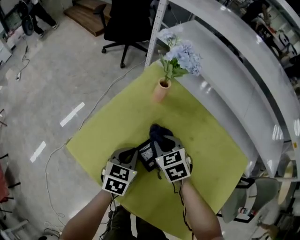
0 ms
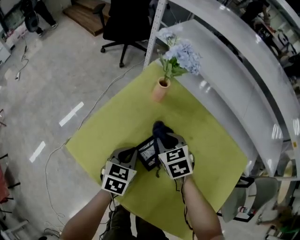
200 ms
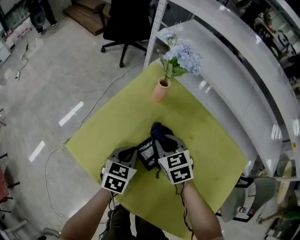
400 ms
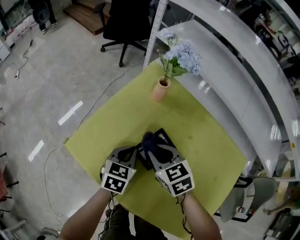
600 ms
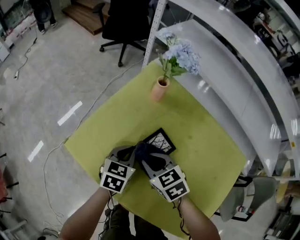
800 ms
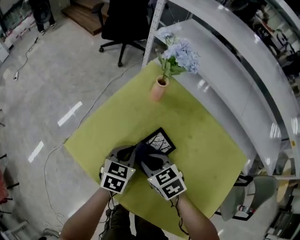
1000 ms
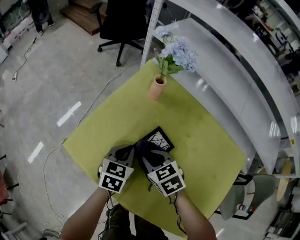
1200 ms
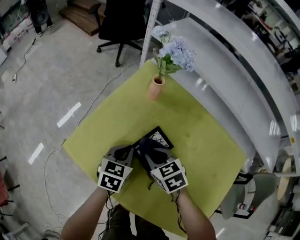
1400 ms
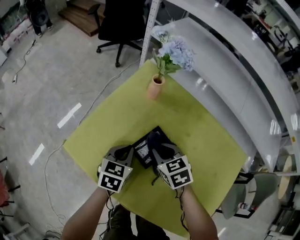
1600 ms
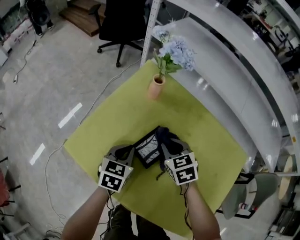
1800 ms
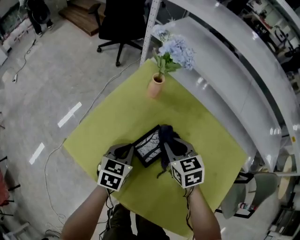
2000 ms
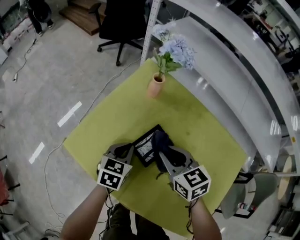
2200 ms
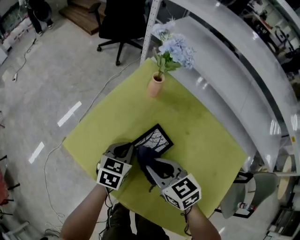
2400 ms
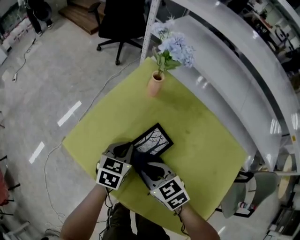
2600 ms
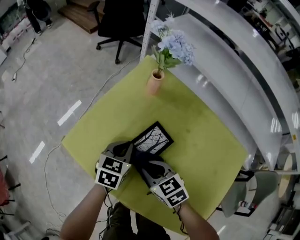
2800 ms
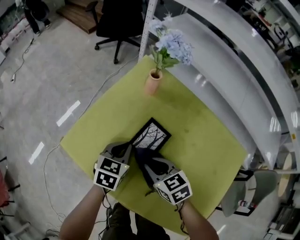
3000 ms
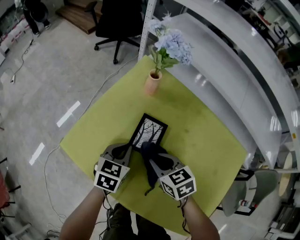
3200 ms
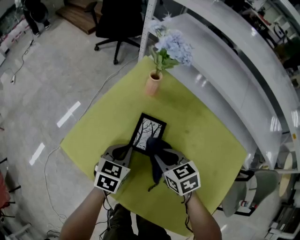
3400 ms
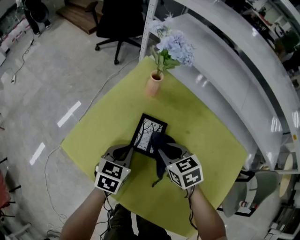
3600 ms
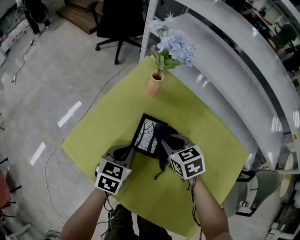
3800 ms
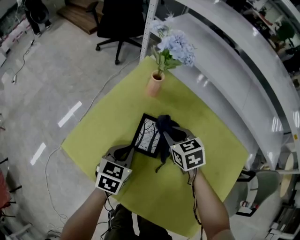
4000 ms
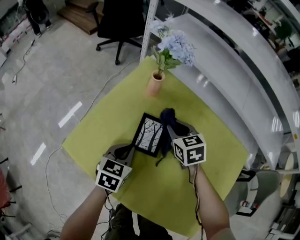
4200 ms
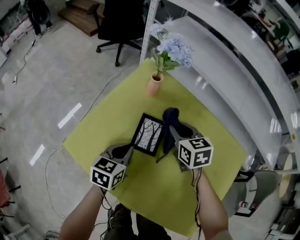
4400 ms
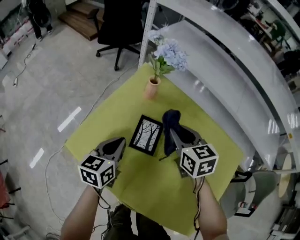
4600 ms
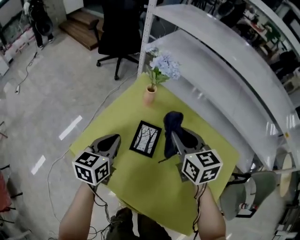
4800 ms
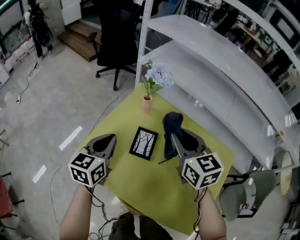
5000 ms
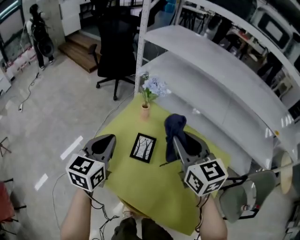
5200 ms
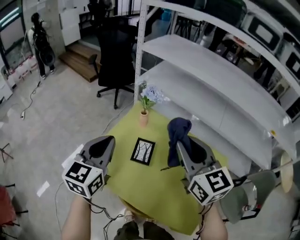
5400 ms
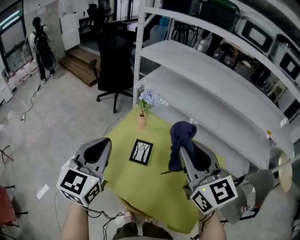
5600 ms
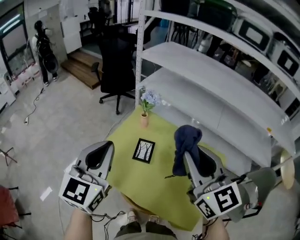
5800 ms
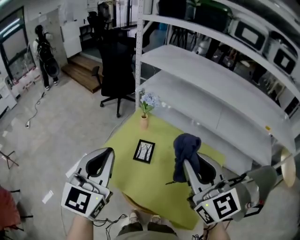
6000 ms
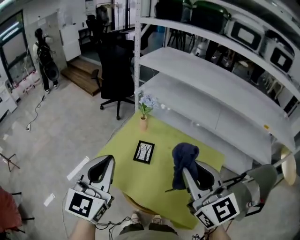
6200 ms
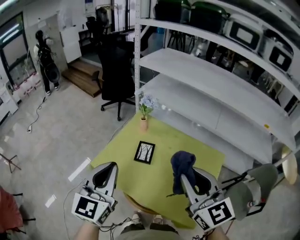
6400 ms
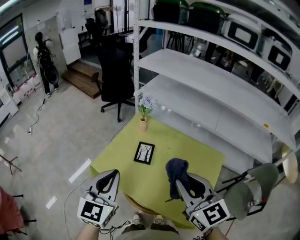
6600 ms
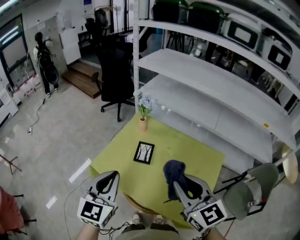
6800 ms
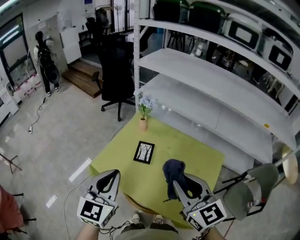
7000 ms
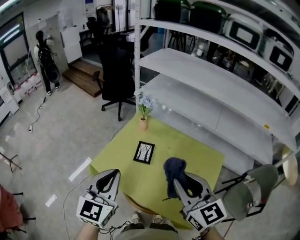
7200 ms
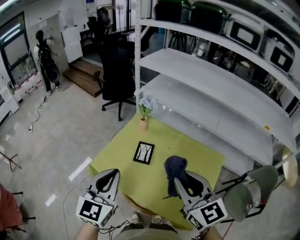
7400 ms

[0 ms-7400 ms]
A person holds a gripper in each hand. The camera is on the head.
0 ms to 1400 ms: The right gripper moves backward, approximately 5 cm.
1400 ms to 3000 ms: The right gripper heads backward, covering roughly 5 cm.
3000 ms to 4400 ms: The right gripper travels forward and to the right by approximately 15 cm, and swivels roughly 20 degrees.
4400 ms to 6000 ms: The right gripper shifts some 50 cm upward and backward, and points its fingers some 40 degrees further upward; the left gripper travels upward by approximately 40 cm, and angles its fingers upward, by some 30 degrees.
6000 ms to 7400 ms: The grippers both shift downward by about 5 cm.

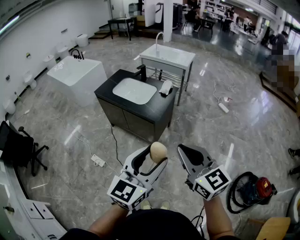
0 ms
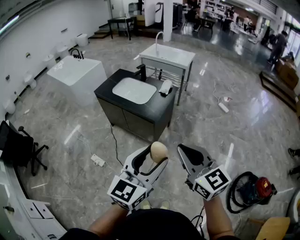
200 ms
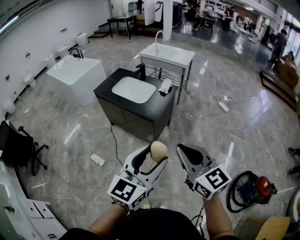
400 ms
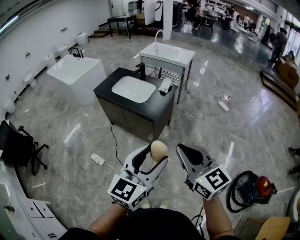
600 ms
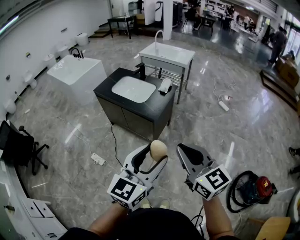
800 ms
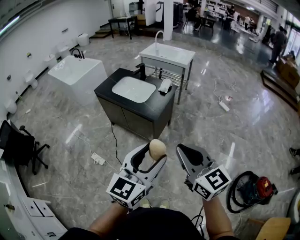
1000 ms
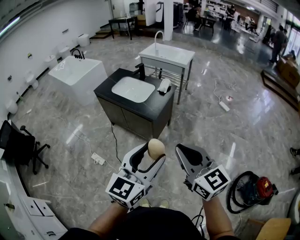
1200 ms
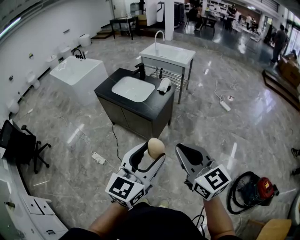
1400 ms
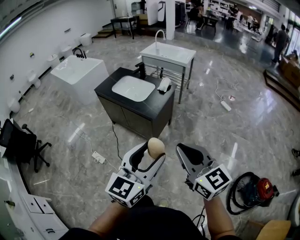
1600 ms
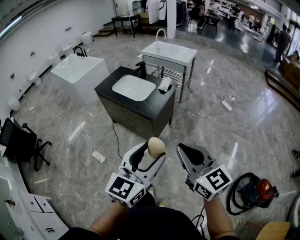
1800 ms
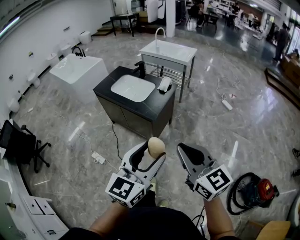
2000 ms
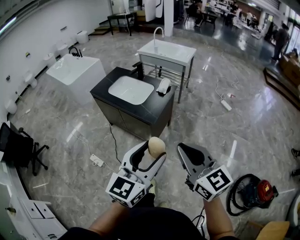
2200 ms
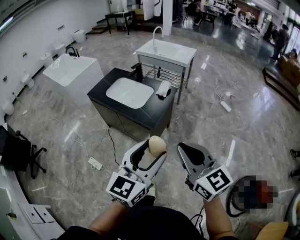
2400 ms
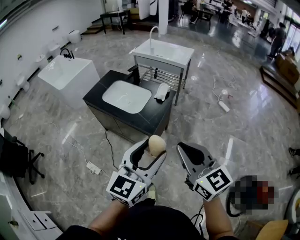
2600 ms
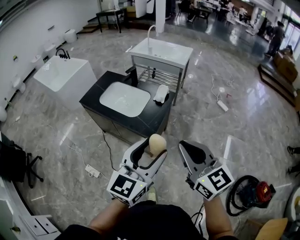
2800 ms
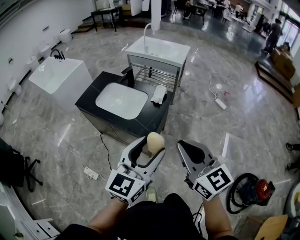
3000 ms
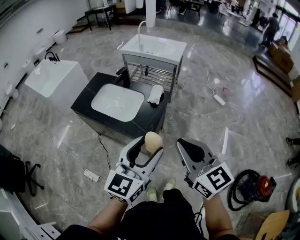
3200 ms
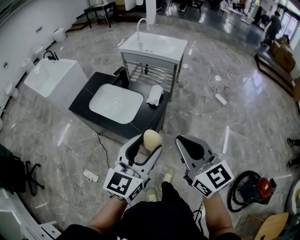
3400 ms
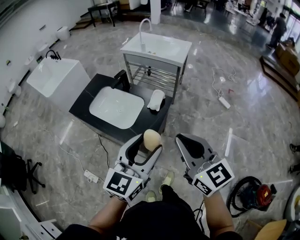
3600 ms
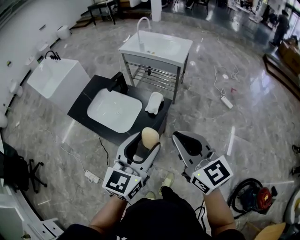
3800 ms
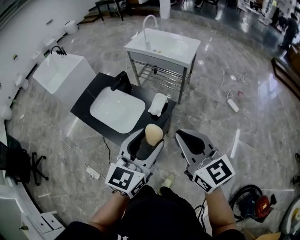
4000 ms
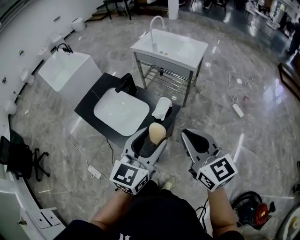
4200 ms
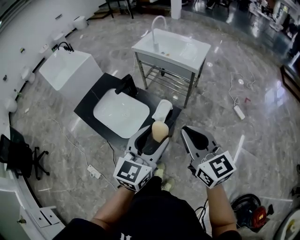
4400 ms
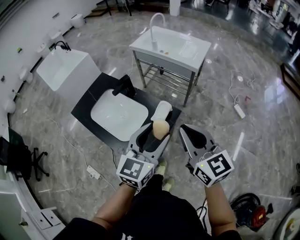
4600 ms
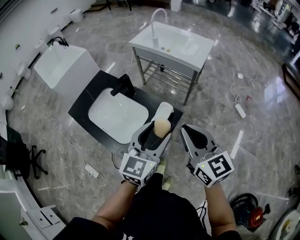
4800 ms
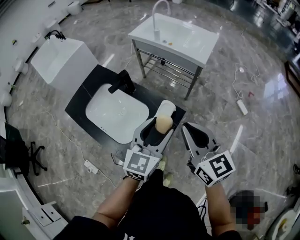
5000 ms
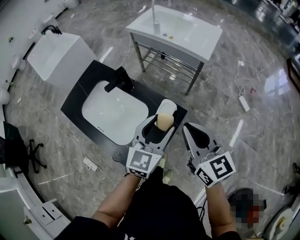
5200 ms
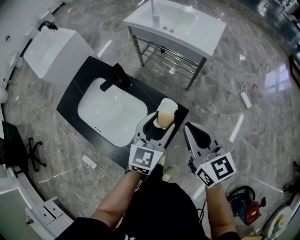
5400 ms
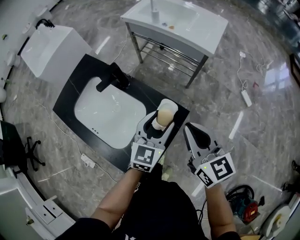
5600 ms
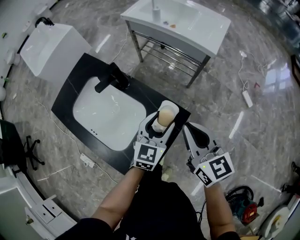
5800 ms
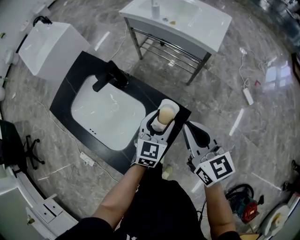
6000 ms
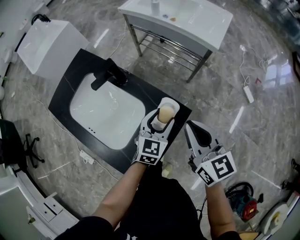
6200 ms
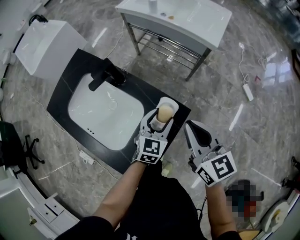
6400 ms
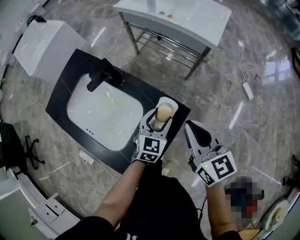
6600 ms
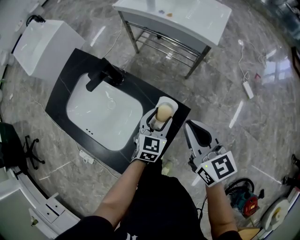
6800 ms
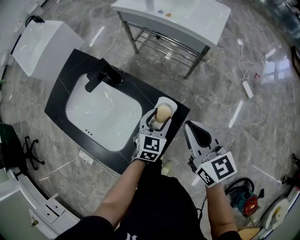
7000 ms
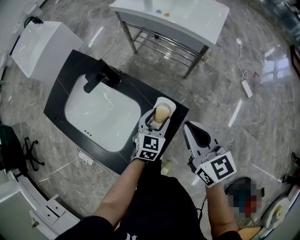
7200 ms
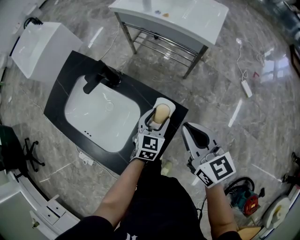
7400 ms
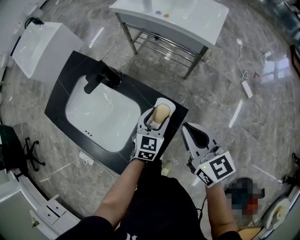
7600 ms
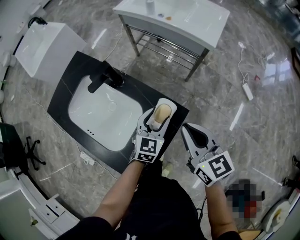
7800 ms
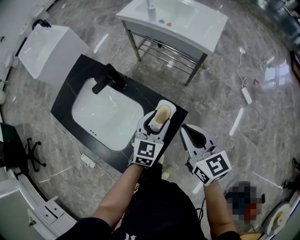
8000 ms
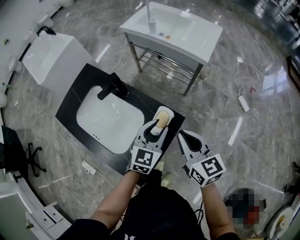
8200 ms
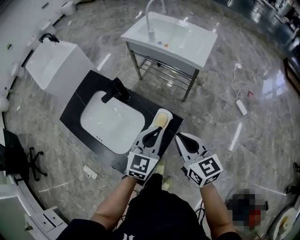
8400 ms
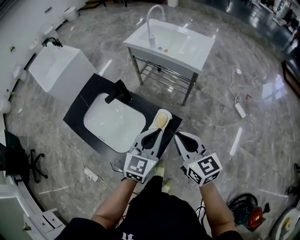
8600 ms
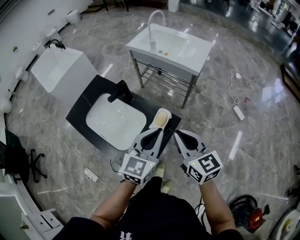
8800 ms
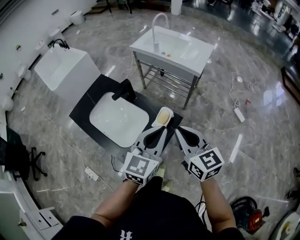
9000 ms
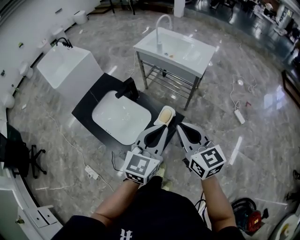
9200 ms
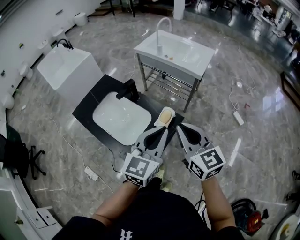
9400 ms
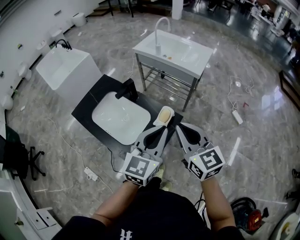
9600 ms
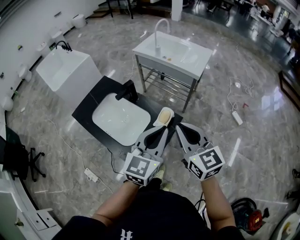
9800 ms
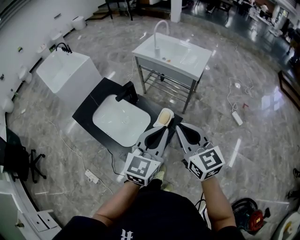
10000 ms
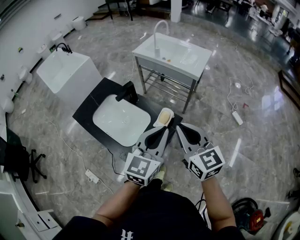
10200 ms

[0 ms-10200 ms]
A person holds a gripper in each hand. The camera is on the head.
0 ms to 1400 ms: The grippers move only a little.
1400 ms to 3000 ms: The two grippers go roughly 25 cm forward.
3000 ms to 4400 ms: Both grippers move forward, about 30 cm.
4400 ms to 5800 ms: The left gripper is displaced downward and forward by approximately 35 cm. Meanwhile the right gripper heads forward and downward, covering some 25 cm.
5800 ms to 7200 ms: The left gripper travels downward by roughly 10 cm.
7200 ms to 8800 ms: The right gripper heads upward and backward, covering about 15 cm; the left gripper heads upward and backward, covering approximately 30 cm, rotates about 20 degrees, and closes up.
8800 ms to 10200 ms: The left gripper travels upward and backward by about 10 cm. The right gripper is displaced upward by roughly 5 cm.

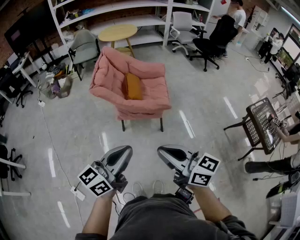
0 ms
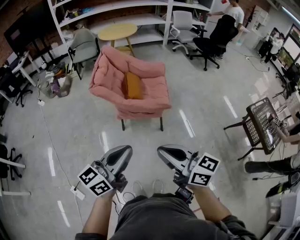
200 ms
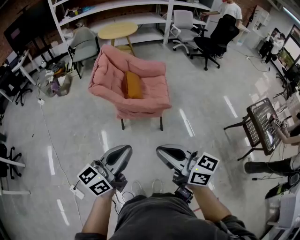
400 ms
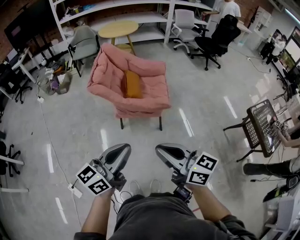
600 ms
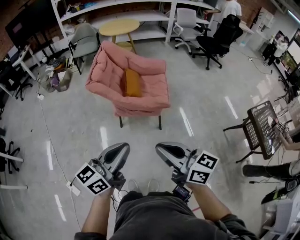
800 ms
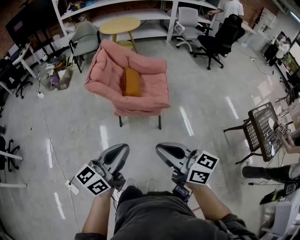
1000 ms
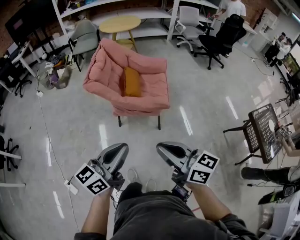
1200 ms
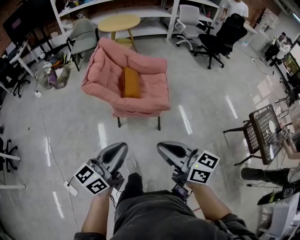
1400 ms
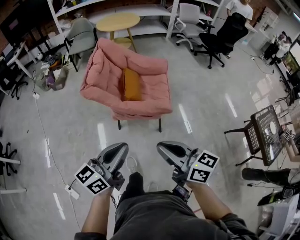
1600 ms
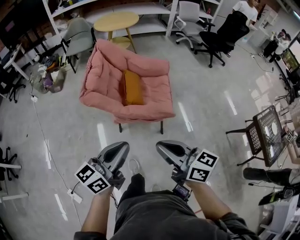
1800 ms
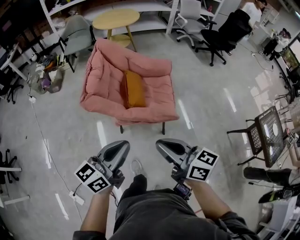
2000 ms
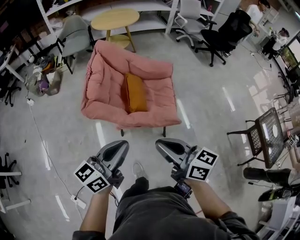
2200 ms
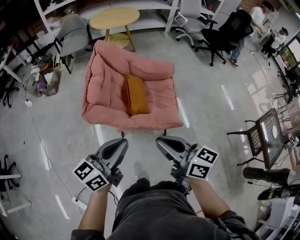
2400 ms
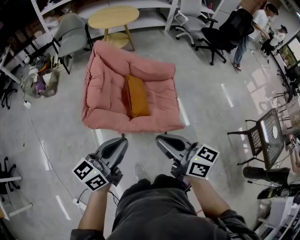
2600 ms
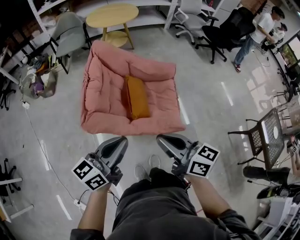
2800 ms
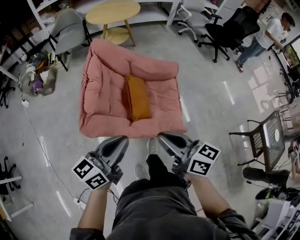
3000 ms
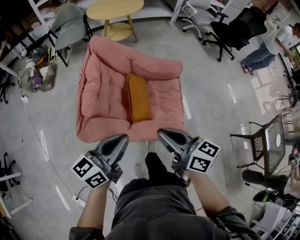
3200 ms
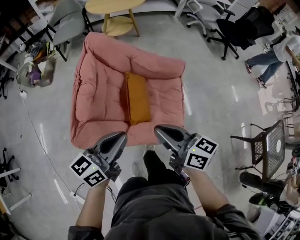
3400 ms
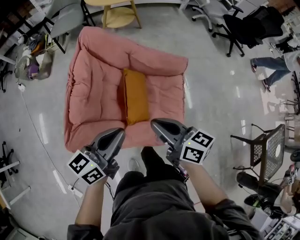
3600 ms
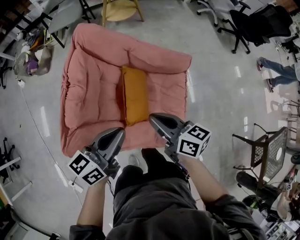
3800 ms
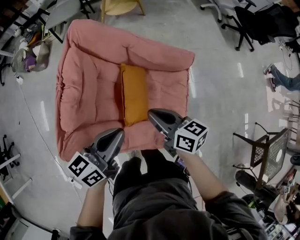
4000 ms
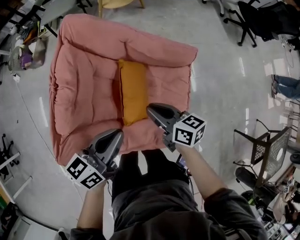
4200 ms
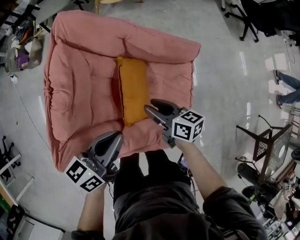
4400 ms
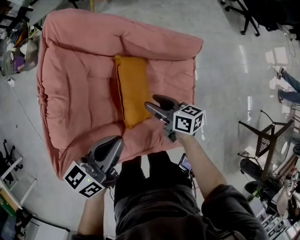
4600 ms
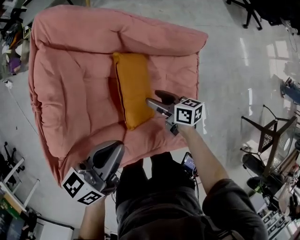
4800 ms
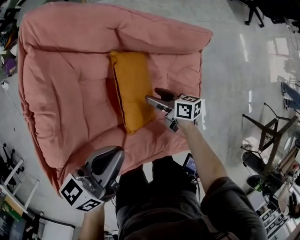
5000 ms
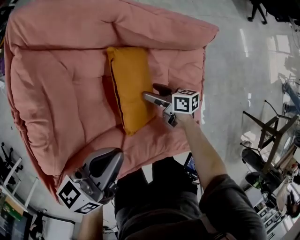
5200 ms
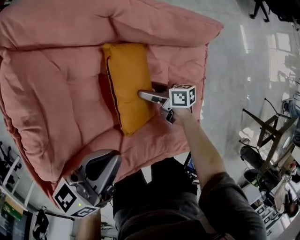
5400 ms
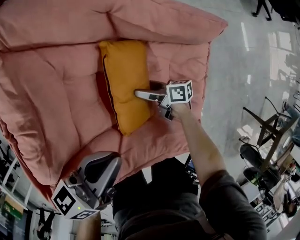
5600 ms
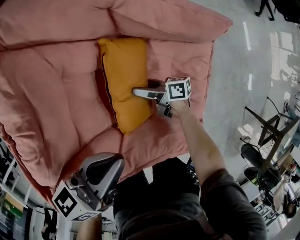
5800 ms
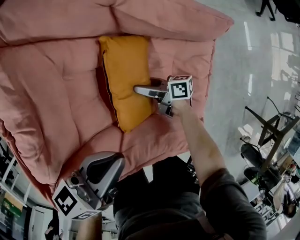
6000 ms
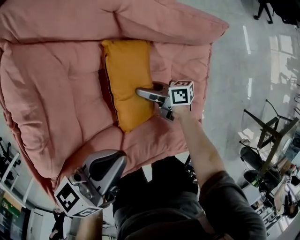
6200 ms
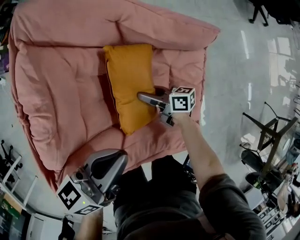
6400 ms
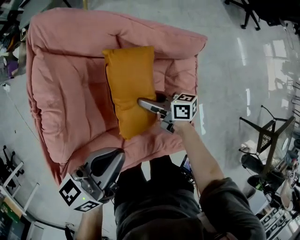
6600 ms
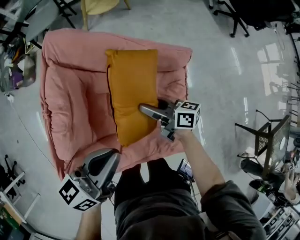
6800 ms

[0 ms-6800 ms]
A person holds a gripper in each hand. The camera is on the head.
0 ms to 1400 ms: Both grippers travel together forward, about 10 cm.
1400 ms to 2800 ms: The grippers both shift forward by about 35 cm.
2800 ms to 4000 ms: Both grippers travel together forward and downward, some 30 cm.
4000 ms to 5400 ms: The right gripper travels downward by roughly 35 cm, changes its angle by approximately 30 degrees, and opens its fingers. Meanwhile the left gripper moves downward and forward, some 15 cm.
5400 ms to 6800 ms: The right gripper moves upward, some 25 cm, rotates some 20 degrees, and closes its fingers; the left gripper travels upward by roughly 15 cm.
